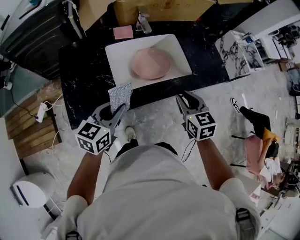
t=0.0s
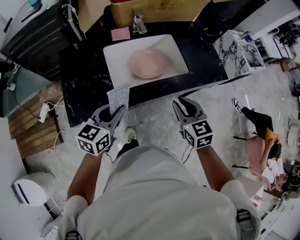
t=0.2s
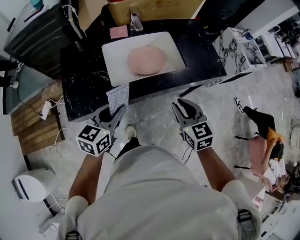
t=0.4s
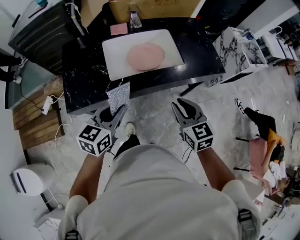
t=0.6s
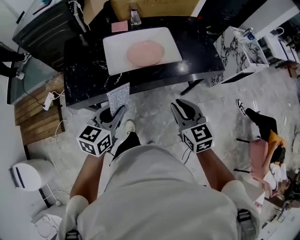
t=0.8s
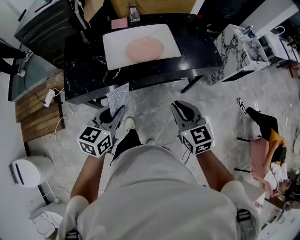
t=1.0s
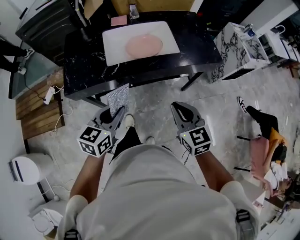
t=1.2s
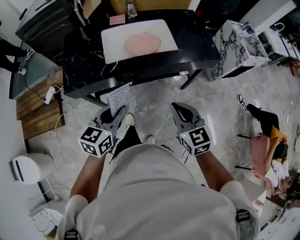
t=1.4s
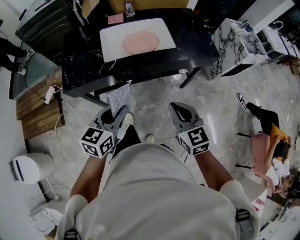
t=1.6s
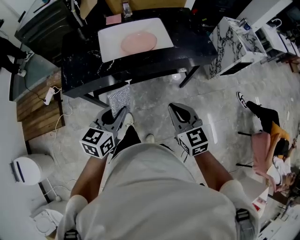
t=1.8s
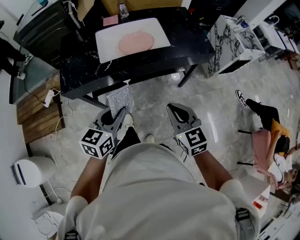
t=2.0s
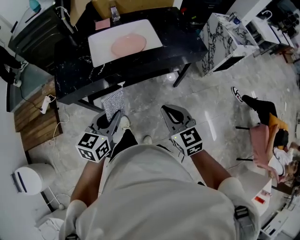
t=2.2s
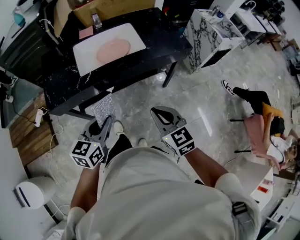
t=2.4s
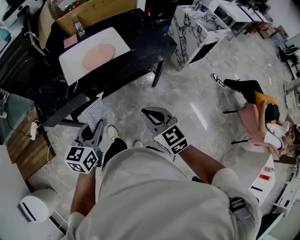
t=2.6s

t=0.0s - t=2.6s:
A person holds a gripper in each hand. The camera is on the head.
t=0.0s - t=1.2s: Both grippers travel together backward and to the right, about 20 cm.
t=1.2s - t=2.6s: The left gripper heads to the right, covering about 5 cm; the right gripper shifts some 5 cm backward.

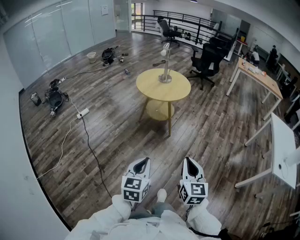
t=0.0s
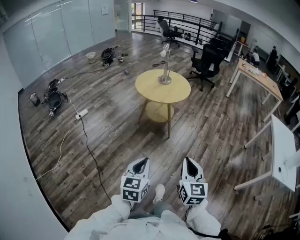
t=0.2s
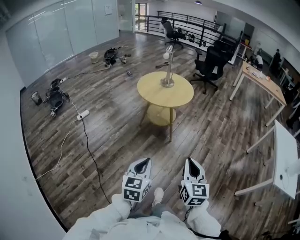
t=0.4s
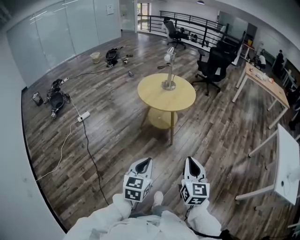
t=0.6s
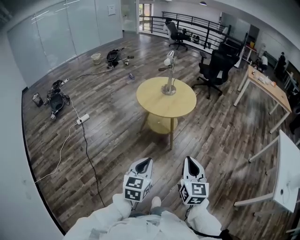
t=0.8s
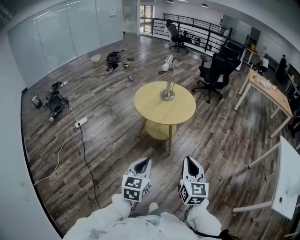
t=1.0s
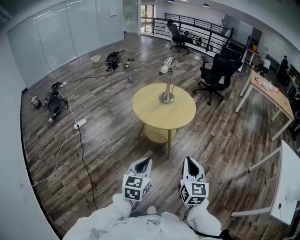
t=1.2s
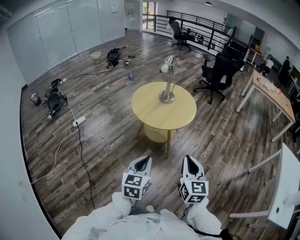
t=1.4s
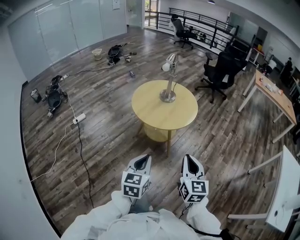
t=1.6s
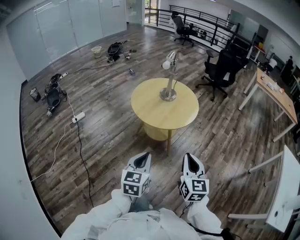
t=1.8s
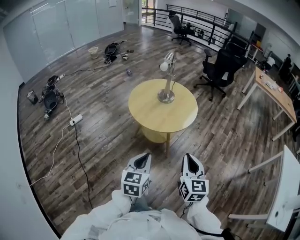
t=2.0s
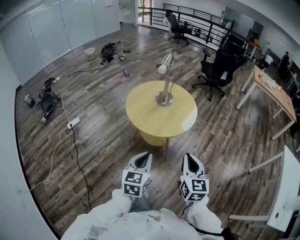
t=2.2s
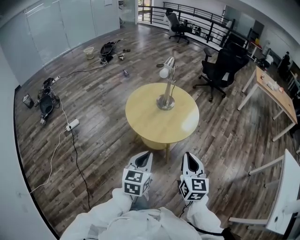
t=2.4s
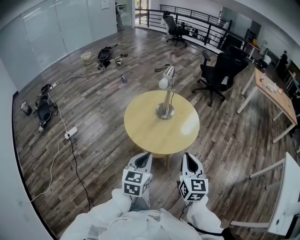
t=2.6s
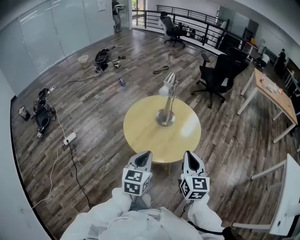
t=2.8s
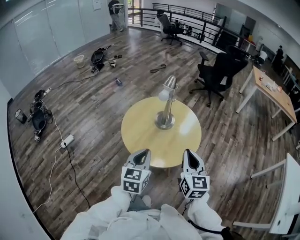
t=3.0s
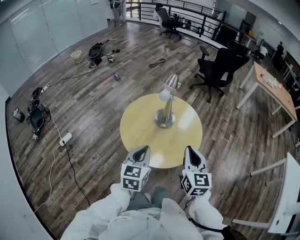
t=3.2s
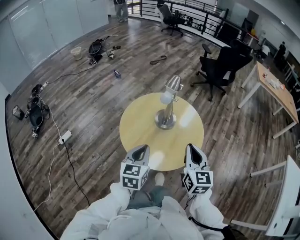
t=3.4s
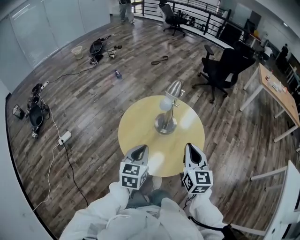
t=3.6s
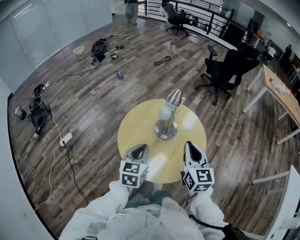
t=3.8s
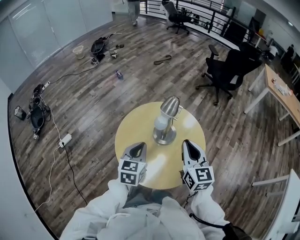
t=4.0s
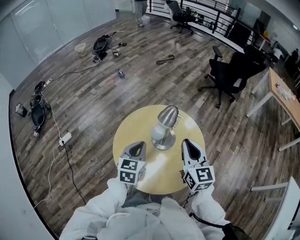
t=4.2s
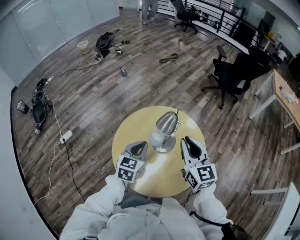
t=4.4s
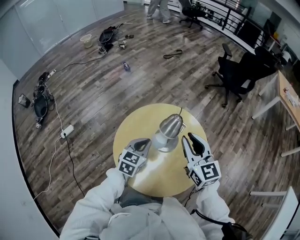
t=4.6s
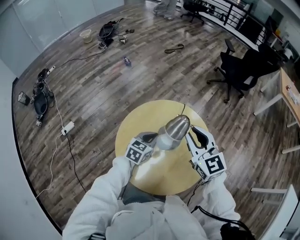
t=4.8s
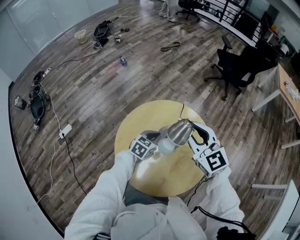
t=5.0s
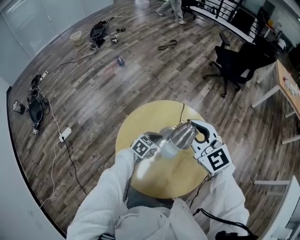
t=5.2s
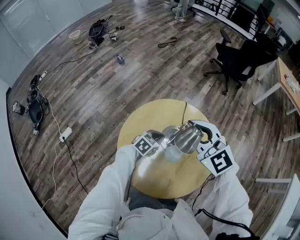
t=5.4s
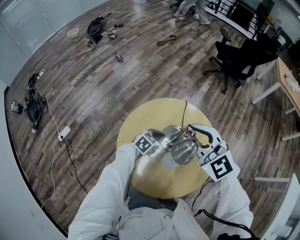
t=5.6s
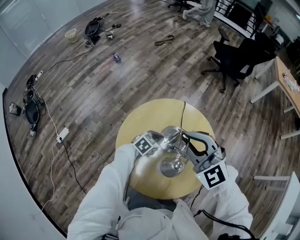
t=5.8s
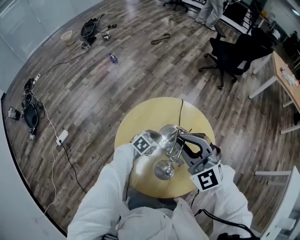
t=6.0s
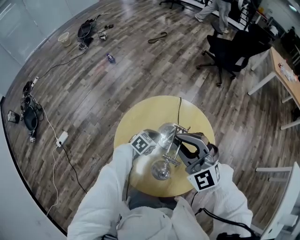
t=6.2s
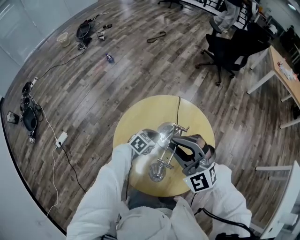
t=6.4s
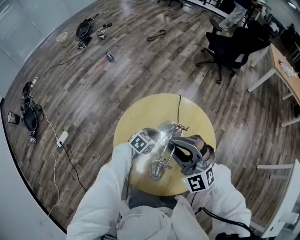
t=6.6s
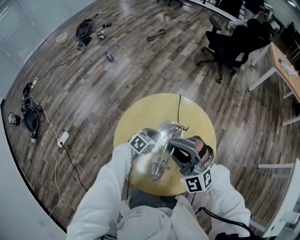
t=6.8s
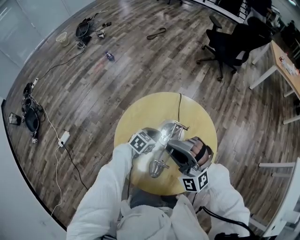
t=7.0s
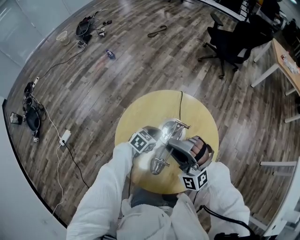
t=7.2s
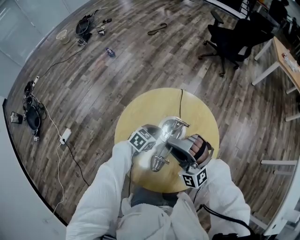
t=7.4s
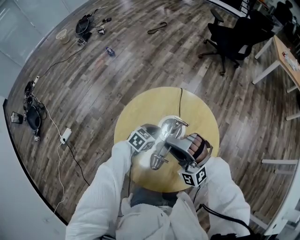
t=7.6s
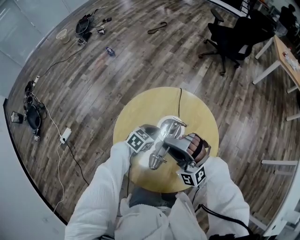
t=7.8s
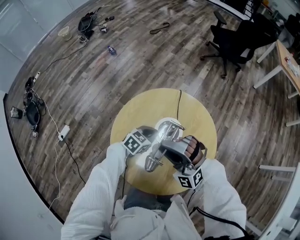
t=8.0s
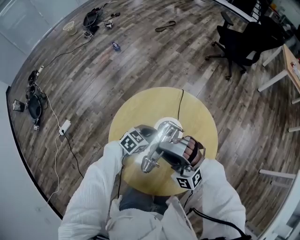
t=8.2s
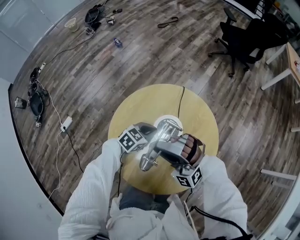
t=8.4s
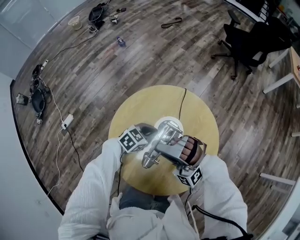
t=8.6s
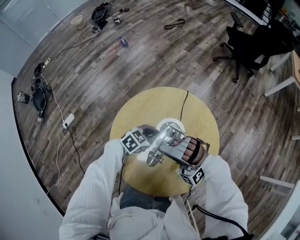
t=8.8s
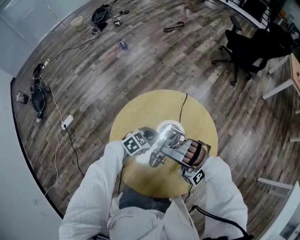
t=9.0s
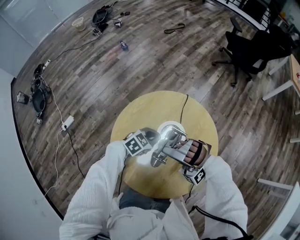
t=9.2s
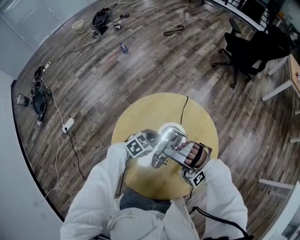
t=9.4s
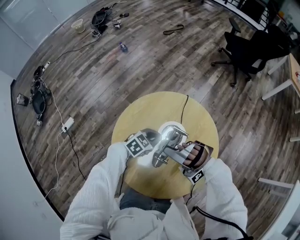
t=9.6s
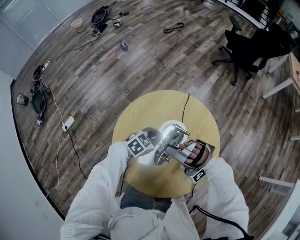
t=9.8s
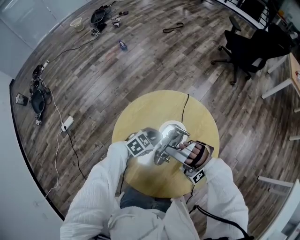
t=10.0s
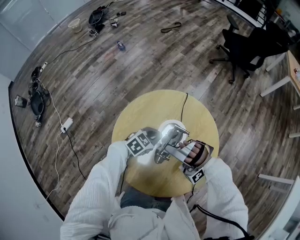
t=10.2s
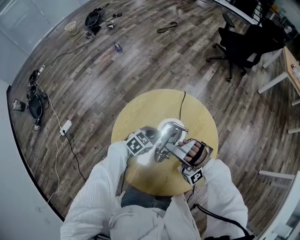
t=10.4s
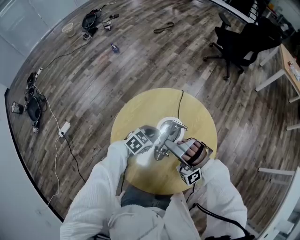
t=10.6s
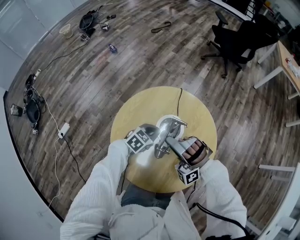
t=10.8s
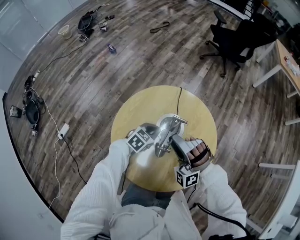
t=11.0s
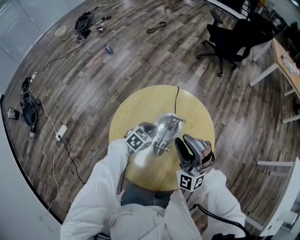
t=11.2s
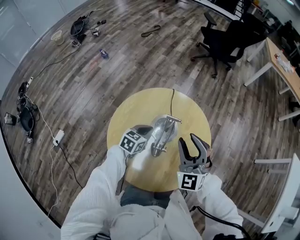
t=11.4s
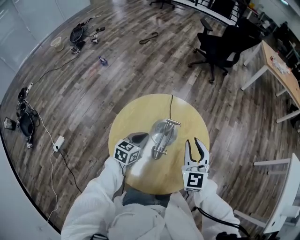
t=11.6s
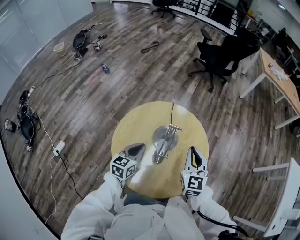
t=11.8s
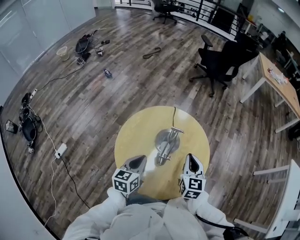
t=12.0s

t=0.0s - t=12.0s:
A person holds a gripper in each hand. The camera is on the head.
t=0.0s - t=1.6s: Both grippers move forward, roughly 40 cm.
t=1.6s - t=3.0s: The grippers both shift forward by approximately 35 cm.
t=3.0s - t=4.4s: The grippers both shift forward by some 30 cm. The right gripper turns by roughly 20 degrees.
t=4.4s - t=6.0s: The left gripper travels downward and forward by about 20 cm, and rotates roughly 40 degrees. Meanwhile the right gripper shifts roughly 10 cm to the left, and changes its angle by approximately 40 degrees.
t=6.0s - t=7.6s: The right gripper heads downward, covering roughly 10 cm, and rotates some 40 degrees.
t=7.6s - t=9.0s: The right gripper rotates approximately 20 degrees.
t=9.0s - t=10.4s: There are only small adjustments of the grippers.
t=10.4s - t=12.0s: The right gripper heads to the right, covering some 10 cm, rotates around the line of its fingers by some 90 degrees, clockwise from behind, and closes. The left gripper travels upward and backward by roughly 20 cm, and changes its angle by about 40 degrees.

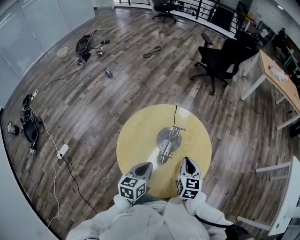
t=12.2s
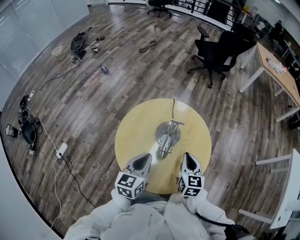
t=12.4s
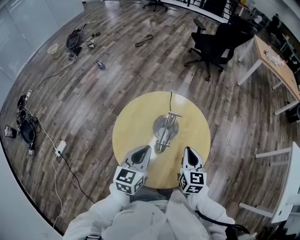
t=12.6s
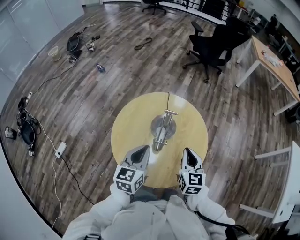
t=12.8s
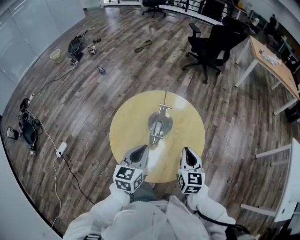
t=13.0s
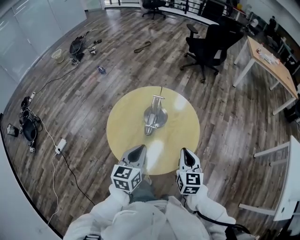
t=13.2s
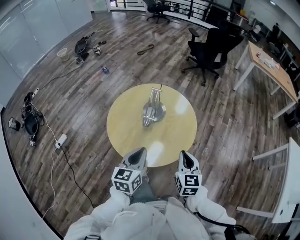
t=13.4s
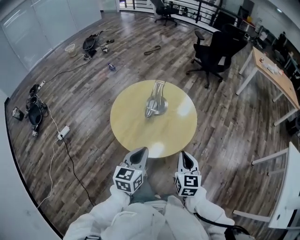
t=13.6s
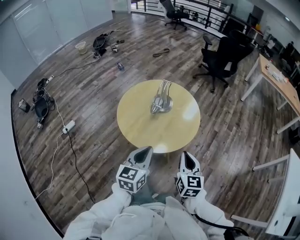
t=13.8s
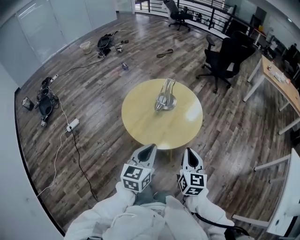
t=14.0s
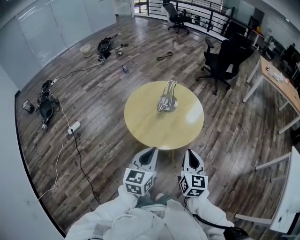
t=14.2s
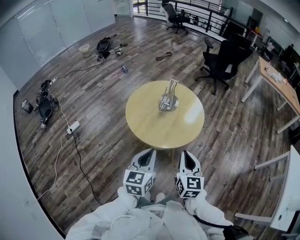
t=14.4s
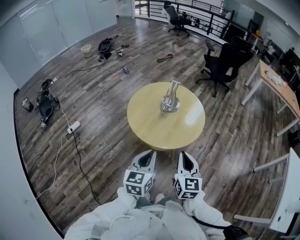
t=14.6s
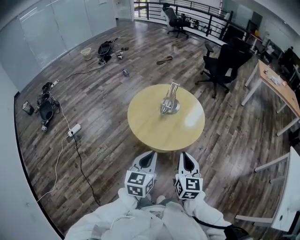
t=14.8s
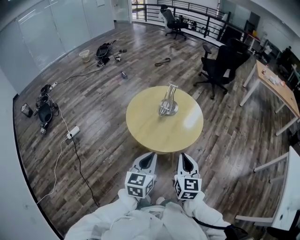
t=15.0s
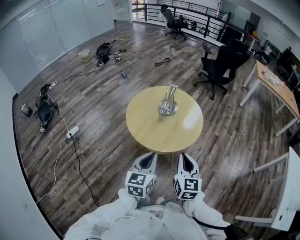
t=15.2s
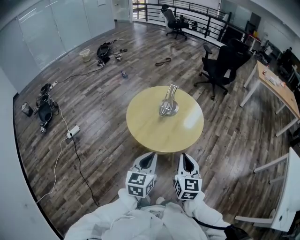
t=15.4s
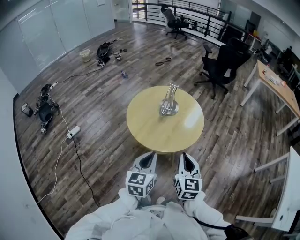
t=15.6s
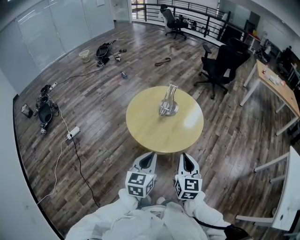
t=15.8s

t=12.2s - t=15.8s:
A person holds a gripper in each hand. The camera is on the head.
t=12.2s - t=14.0s: The left gripper shifts roughly 30 cm backward, to the right and upward, and turns by about 20 degrees. Meanwhile the right gripper shifts about 30 cm backward and to the right.
t=14.0s - t=15.8s: The right gripper is displaced to the left by roughly 5 cm. The left gripper changes place by some 5 cm.

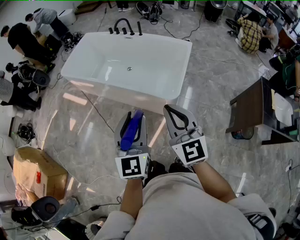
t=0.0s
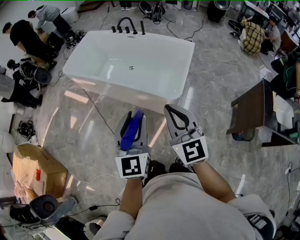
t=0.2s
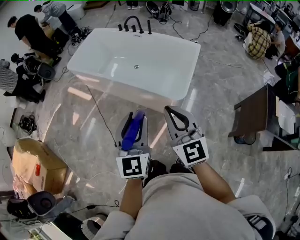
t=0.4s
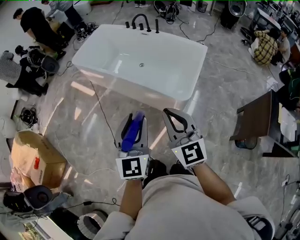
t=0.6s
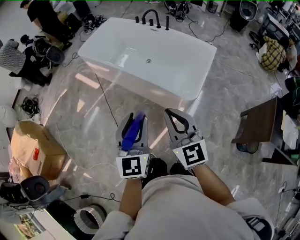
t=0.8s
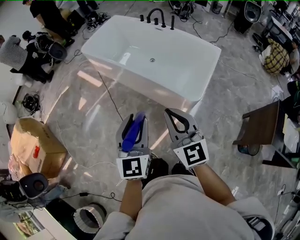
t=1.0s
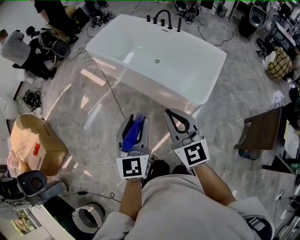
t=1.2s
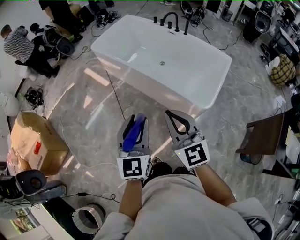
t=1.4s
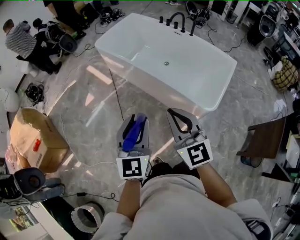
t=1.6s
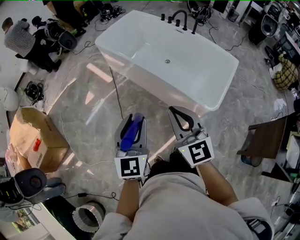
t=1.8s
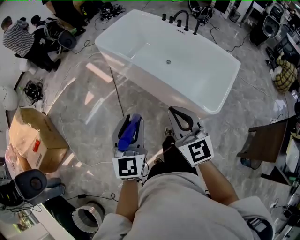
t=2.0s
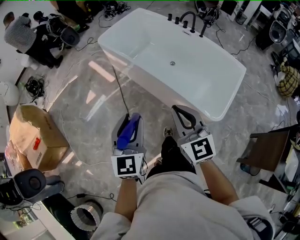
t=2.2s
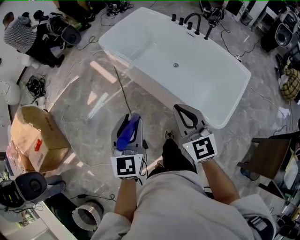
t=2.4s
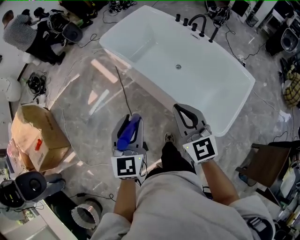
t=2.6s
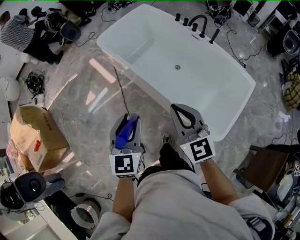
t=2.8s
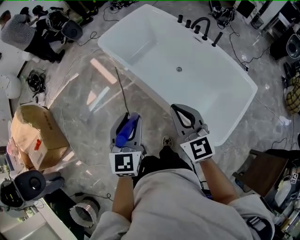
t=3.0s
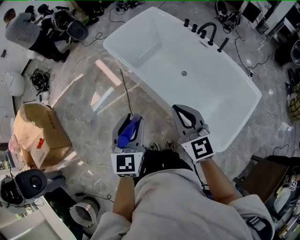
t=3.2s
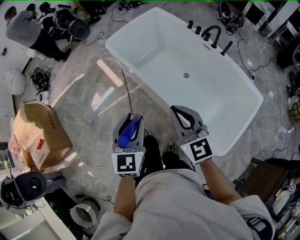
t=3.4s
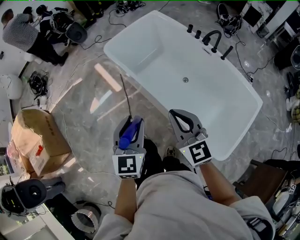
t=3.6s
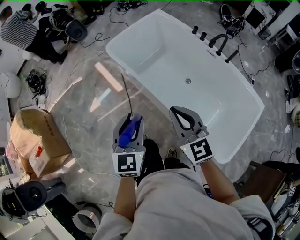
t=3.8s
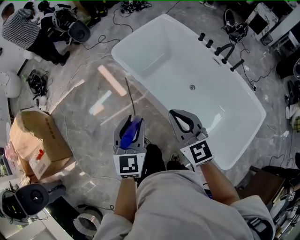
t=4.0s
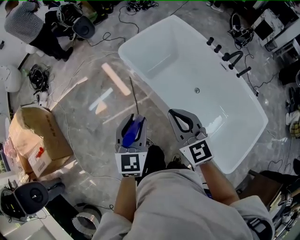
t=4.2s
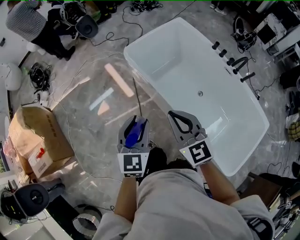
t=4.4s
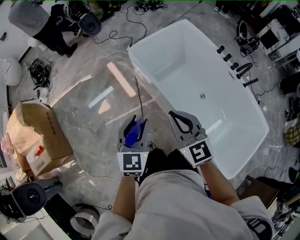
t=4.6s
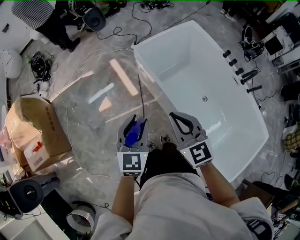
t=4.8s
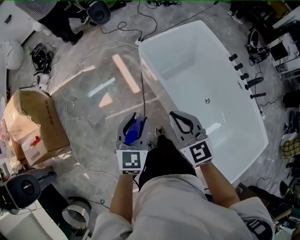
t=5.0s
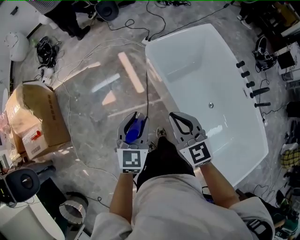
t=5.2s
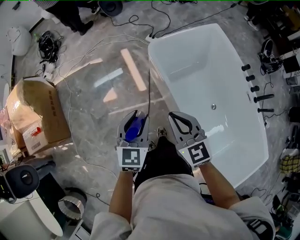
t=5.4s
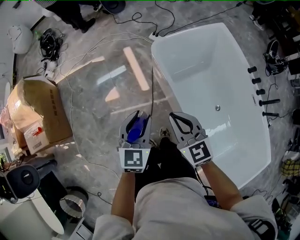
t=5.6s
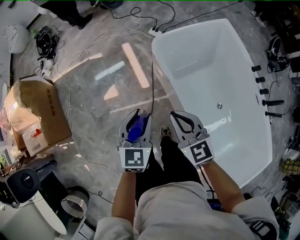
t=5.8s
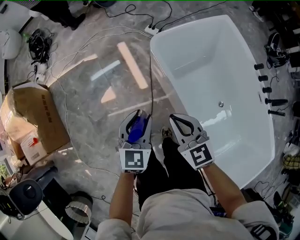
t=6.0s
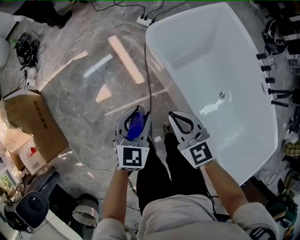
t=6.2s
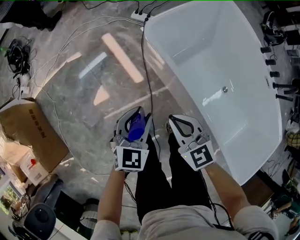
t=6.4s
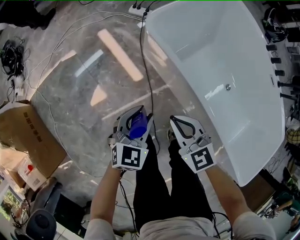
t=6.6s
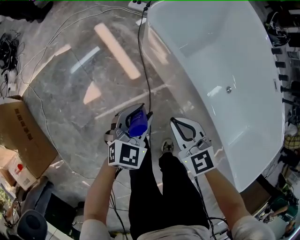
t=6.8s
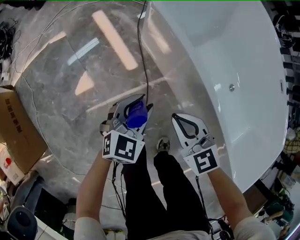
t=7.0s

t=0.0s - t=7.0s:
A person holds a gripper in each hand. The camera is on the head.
t=0.0s - t=1.4s: Both grippers travel together to the left, some 20 cm.
t=1.4s - t=2.8s: The two grippers go roughly 30 cm forward.
t=2.8s - t=4.2s: Both grippers travel together forward and to the left, approximately 30 cm.
t=4.2s - t=5.6s: The left gripper travels forward, to the left and downward by about 25 cm. Meanwhile the right gripper heads forward, downward and to the left, covering about 25 cm, and rotates some 20 degrees.
t=5.6s - t=7.0s: Both grippers move downward, some 40 cm. The left gripper turns by about 40 degrees.
